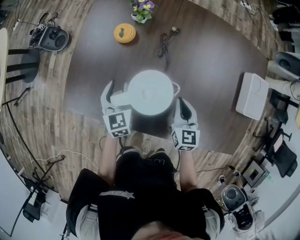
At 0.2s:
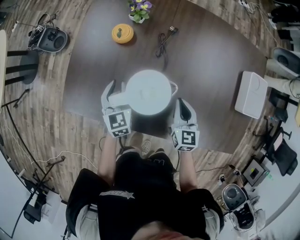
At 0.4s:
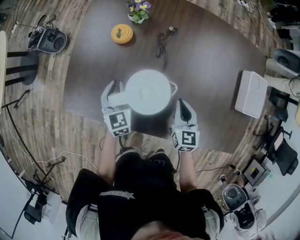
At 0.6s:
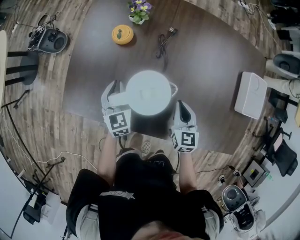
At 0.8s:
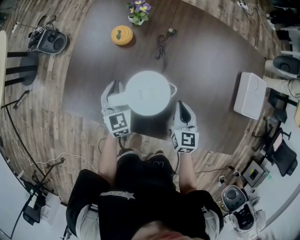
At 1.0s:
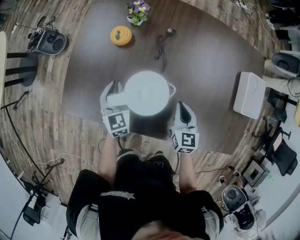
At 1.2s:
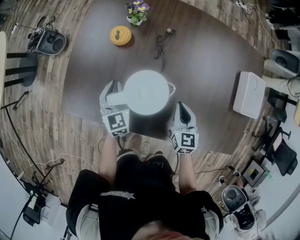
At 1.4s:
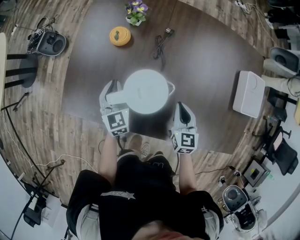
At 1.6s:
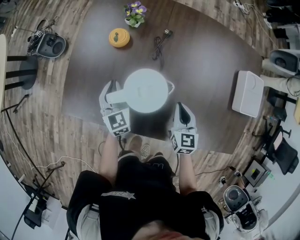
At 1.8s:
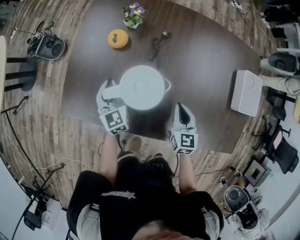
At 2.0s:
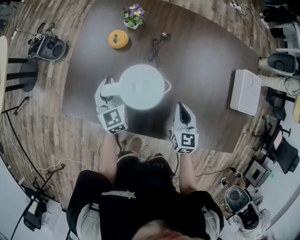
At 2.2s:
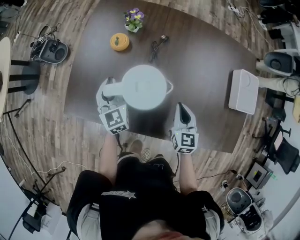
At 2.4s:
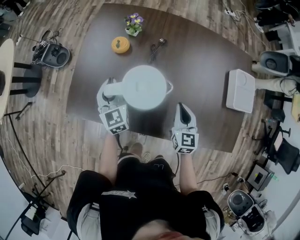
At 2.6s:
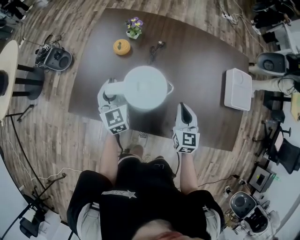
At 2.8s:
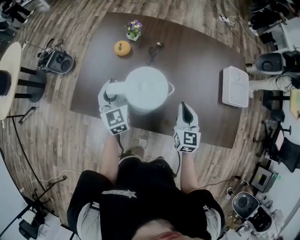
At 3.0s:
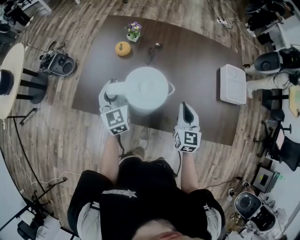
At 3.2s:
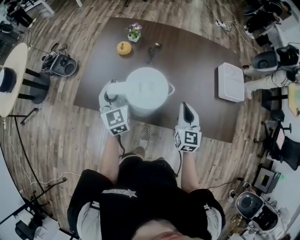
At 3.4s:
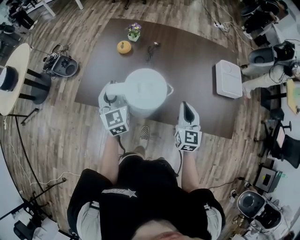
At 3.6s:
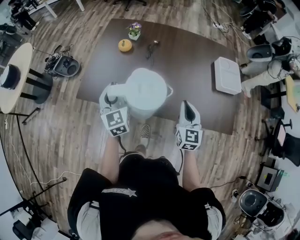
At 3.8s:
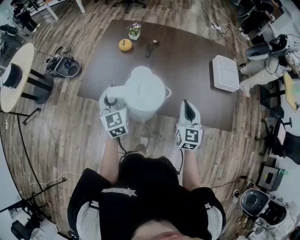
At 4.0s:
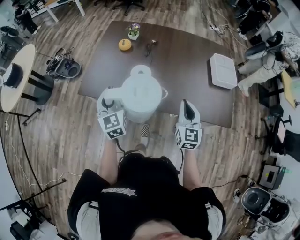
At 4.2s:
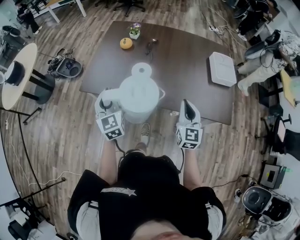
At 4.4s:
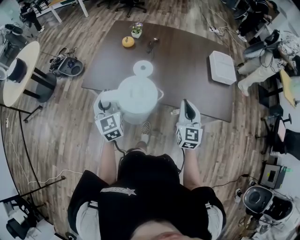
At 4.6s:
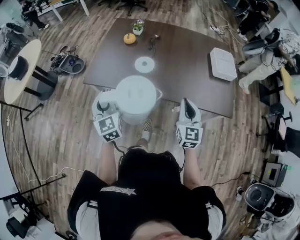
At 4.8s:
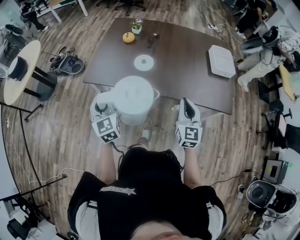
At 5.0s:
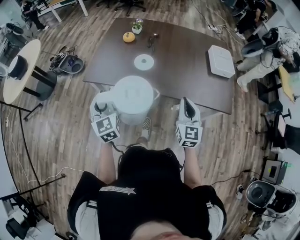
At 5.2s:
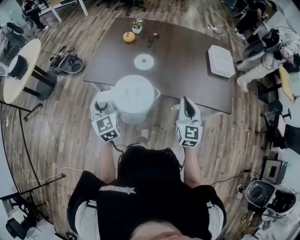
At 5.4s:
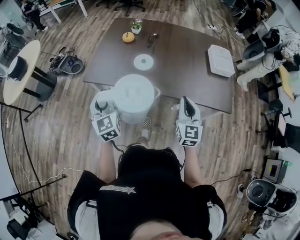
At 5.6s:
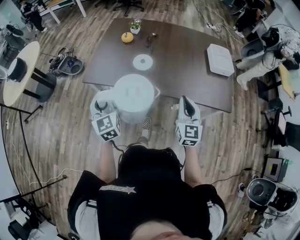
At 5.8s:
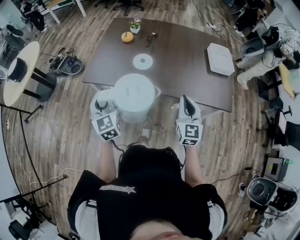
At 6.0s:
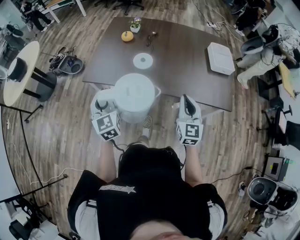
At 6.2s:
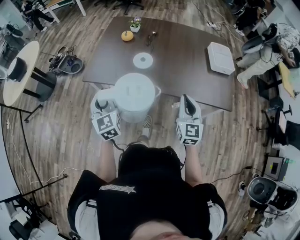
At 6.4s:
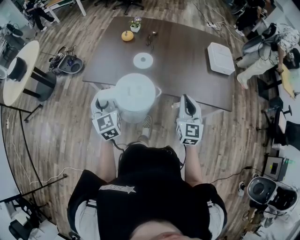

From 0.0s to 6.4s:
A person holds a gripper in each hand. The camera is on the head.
From 0.0s to 1.6s: The left gripper closes up.
From 1.6s to 3.2s: Both grippers move upward and backward, some 20 cm.
From 3.2s to 4.8s: The two grippers go roughly 25 cm backward.
From 4.8s to 6.4s: Both grippers stay about where they are.

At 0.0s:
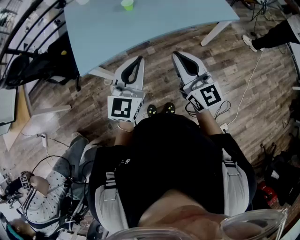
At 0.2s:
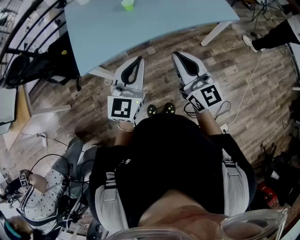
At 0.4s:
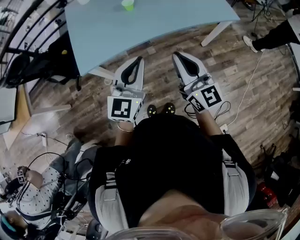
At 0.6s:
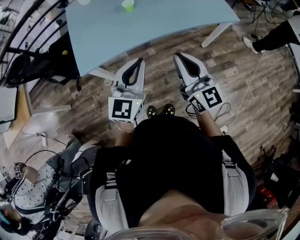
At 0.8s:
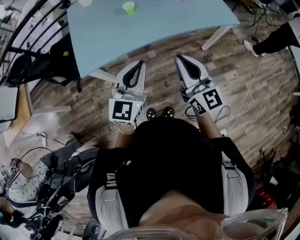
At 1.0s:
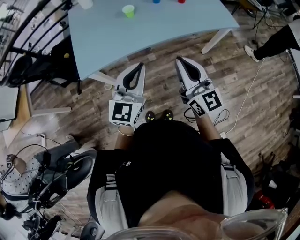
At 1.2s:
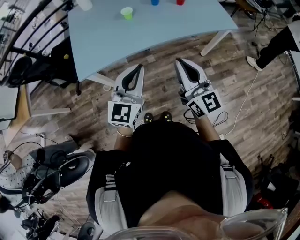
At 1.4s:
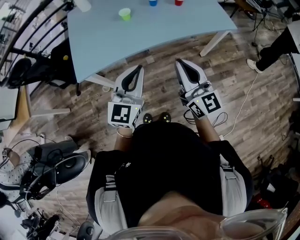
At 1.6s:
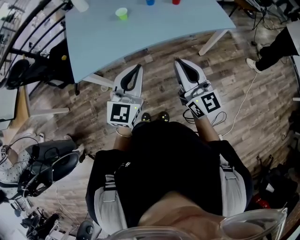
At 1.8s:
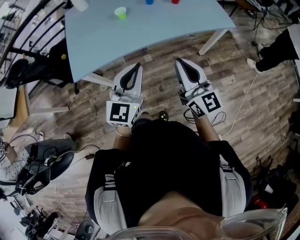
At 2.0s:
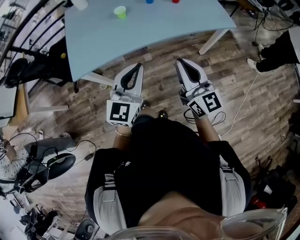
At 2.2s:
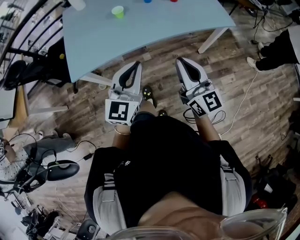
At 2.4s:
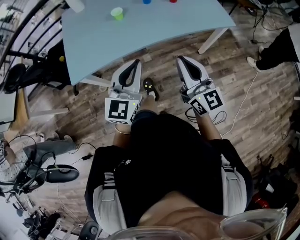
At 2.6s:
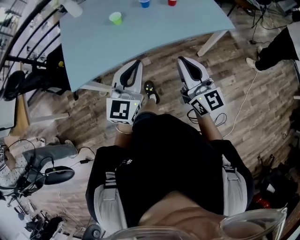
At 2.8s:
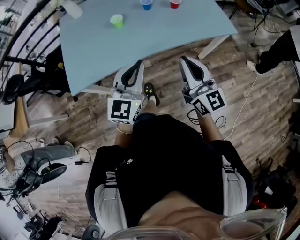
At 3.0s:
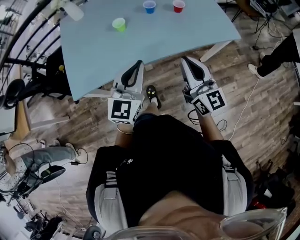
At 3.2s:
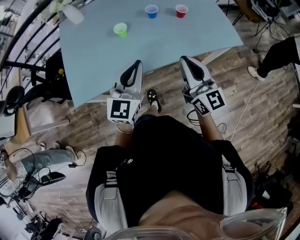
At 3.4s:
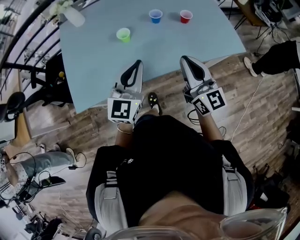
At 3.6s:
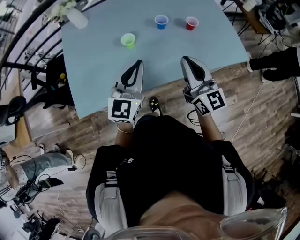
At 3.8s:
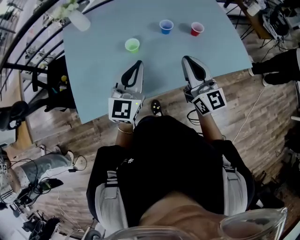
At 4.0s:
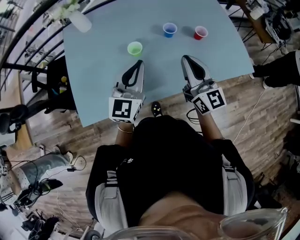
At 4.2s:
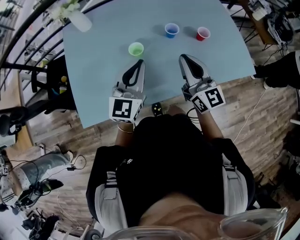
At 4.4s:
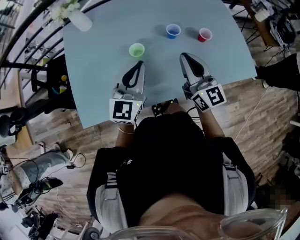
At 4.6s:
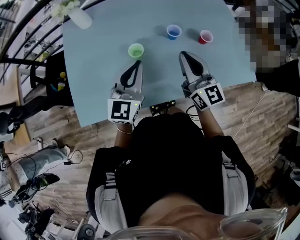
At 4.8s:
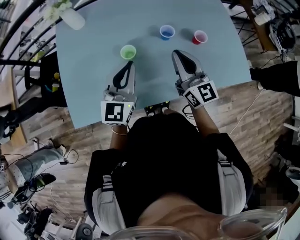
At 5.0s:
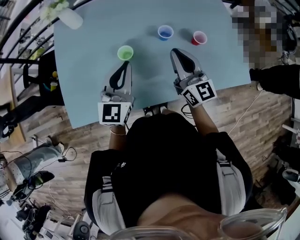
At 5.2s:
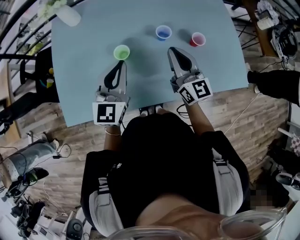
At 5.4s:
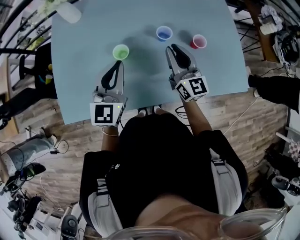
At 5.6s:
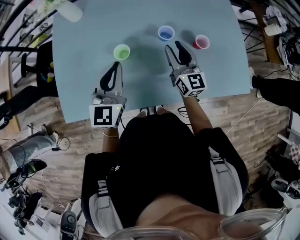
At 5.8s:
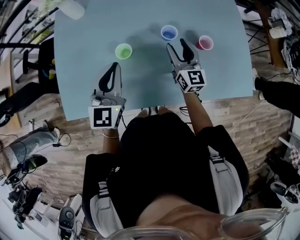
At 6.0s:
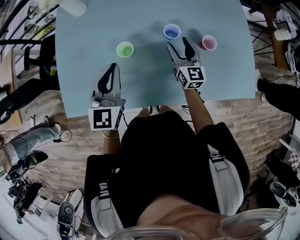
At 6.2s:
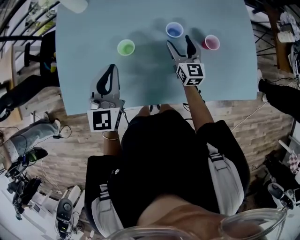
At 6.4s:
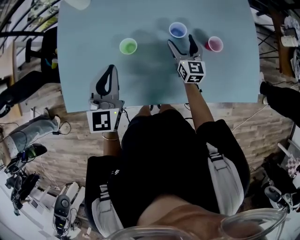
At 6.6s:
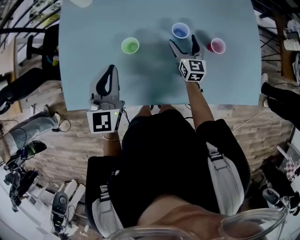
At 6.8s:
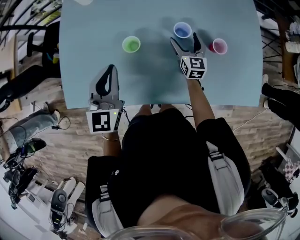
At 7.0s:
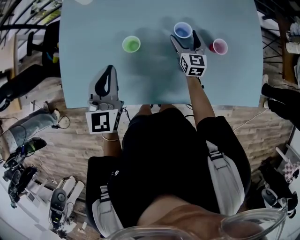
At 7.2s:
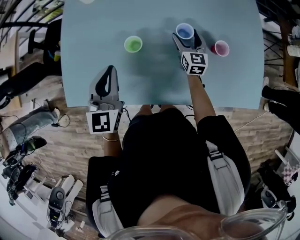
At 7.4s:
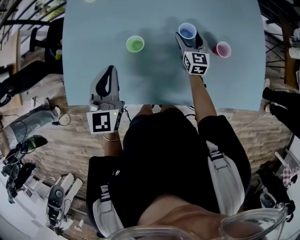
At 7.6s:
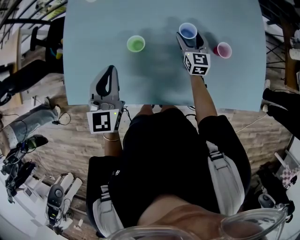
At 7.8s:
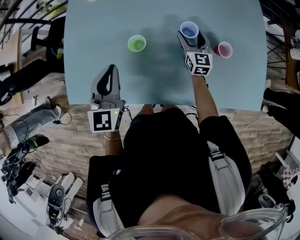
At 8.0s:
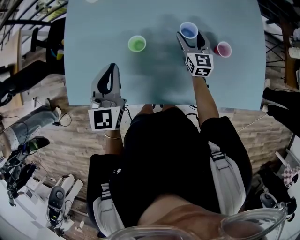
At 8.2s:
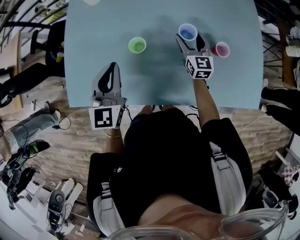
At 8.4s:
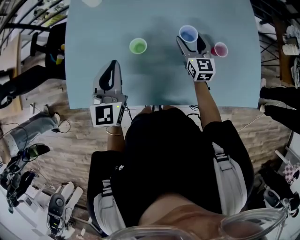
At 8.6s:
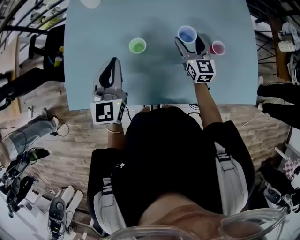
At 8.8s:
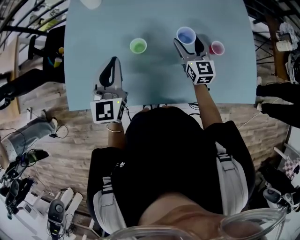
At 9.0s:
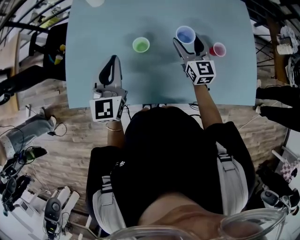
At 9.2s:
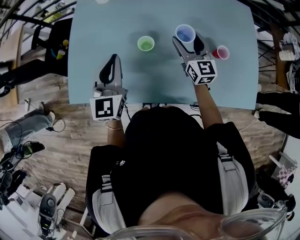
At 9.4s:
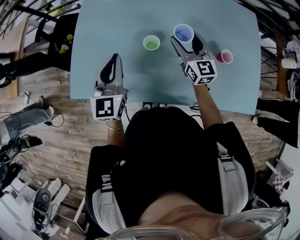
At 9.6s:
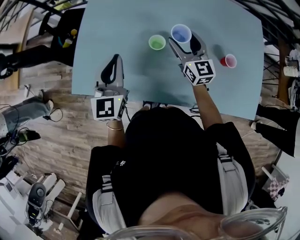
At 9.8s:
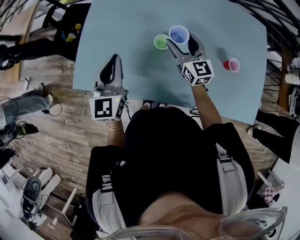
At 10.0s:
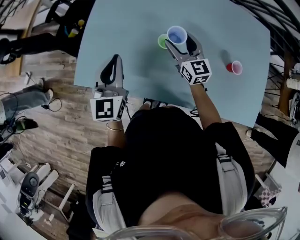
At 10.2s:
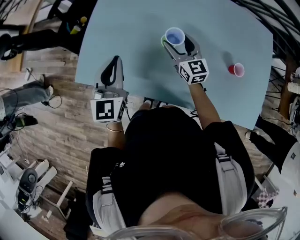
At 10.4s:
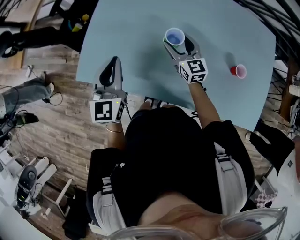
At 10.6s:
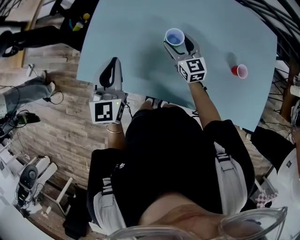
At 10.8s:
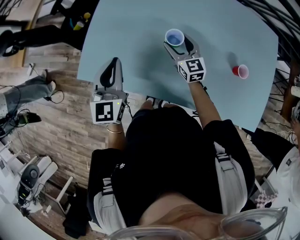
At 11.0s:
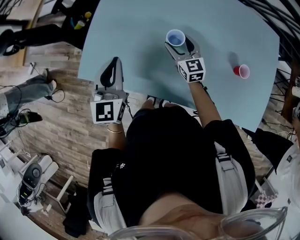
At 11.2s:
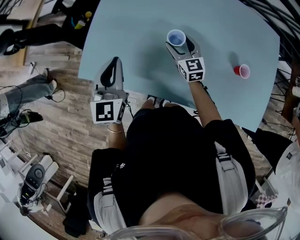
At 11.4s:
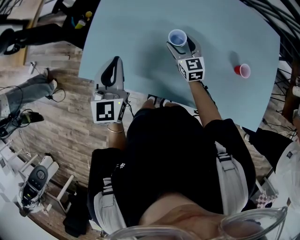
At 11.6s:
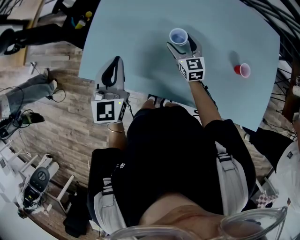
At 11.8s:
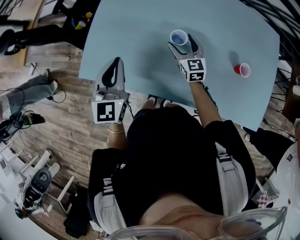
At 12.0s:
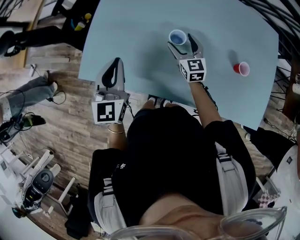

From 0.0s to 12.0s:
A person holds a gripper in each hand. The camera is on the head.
From 0.0s to 1.6s: Both grippers travel together to the right, approximately 10 cm.
From 1.6s to 3.0s: The two grippers go approximately 15 cm forward.
From 3.0s to 4.4s: The grippers both shift forward by about 25 cm.
From 4.4s to 6.0s: The right gripper goes some 25 cm forward and downward, and opens, while the left gripper shifts some 5 cm forward.
From 6.0s to 7.6s: The left gripper shifts approximately 5 cm to the left. The right gripper travels forward and downward by some 10 cm.
From 7.6s to 9.0s: The right gripper heads upward, covering approximately 10 cm.
From 9.0s to 10.4s: The left gripper goes roughly 10 cm to the left. Meanwhile the right gripper travels to the left by roughly 15 cm, and changes its angle by about 20 degrees.
From 10.4s to 12.0s: The grippers make only small movements.

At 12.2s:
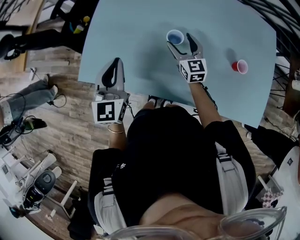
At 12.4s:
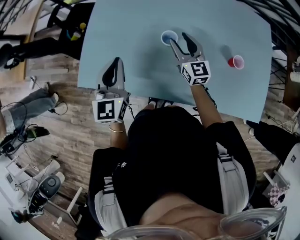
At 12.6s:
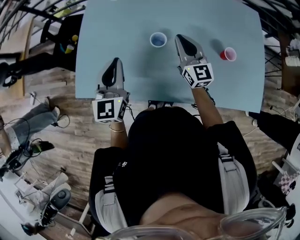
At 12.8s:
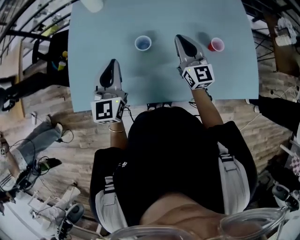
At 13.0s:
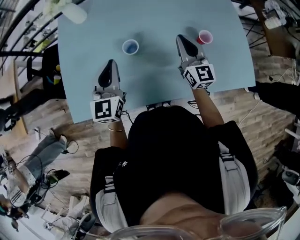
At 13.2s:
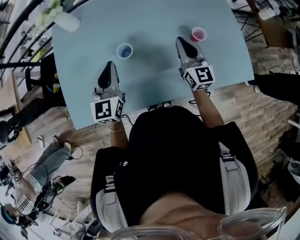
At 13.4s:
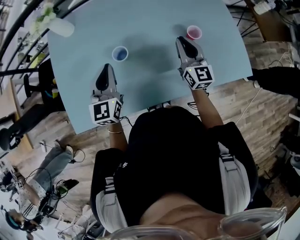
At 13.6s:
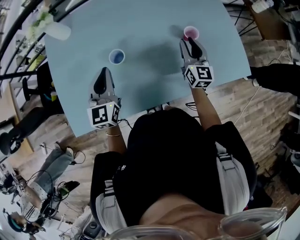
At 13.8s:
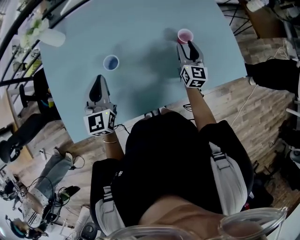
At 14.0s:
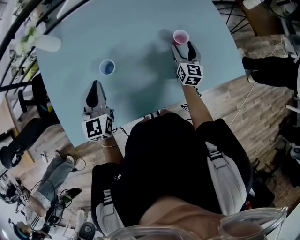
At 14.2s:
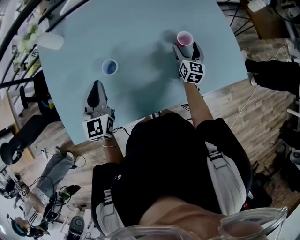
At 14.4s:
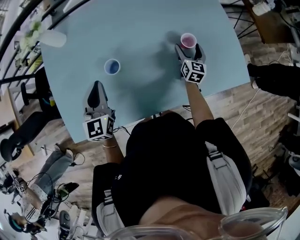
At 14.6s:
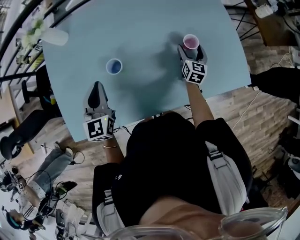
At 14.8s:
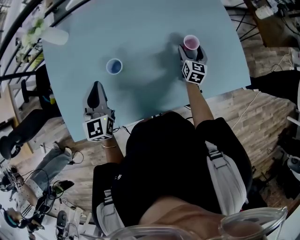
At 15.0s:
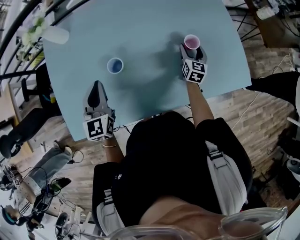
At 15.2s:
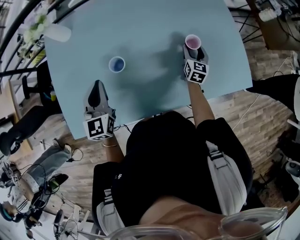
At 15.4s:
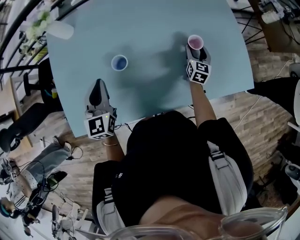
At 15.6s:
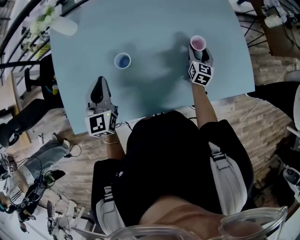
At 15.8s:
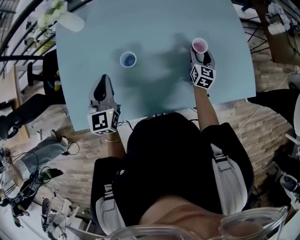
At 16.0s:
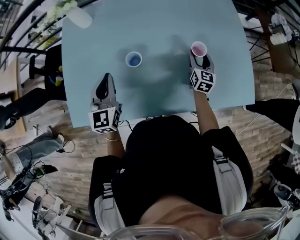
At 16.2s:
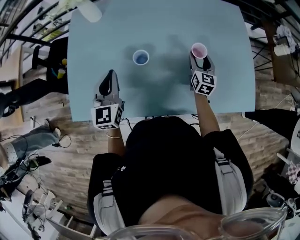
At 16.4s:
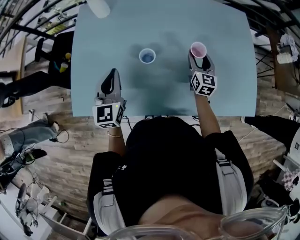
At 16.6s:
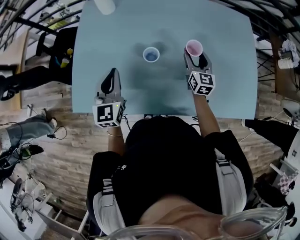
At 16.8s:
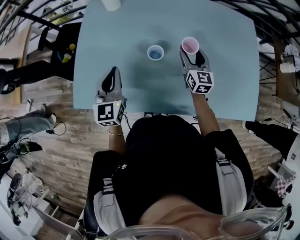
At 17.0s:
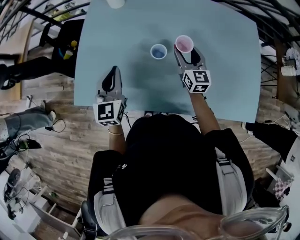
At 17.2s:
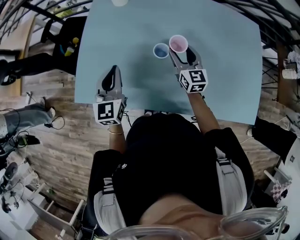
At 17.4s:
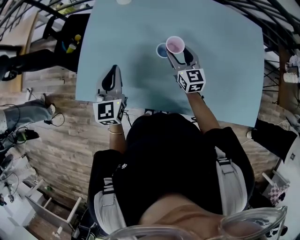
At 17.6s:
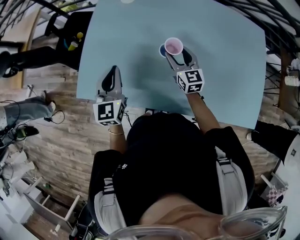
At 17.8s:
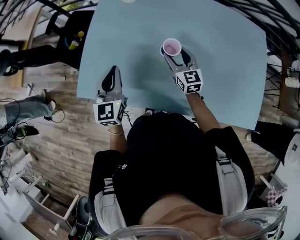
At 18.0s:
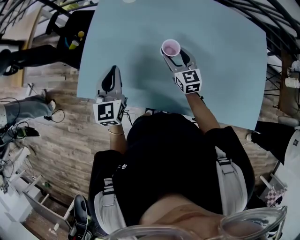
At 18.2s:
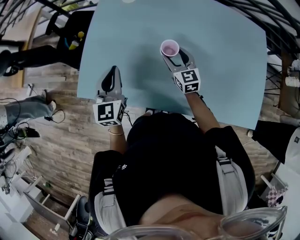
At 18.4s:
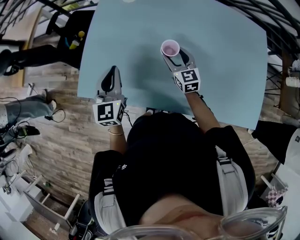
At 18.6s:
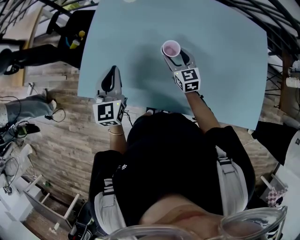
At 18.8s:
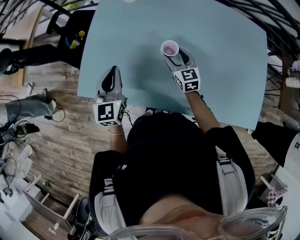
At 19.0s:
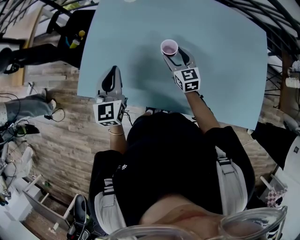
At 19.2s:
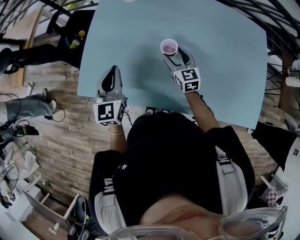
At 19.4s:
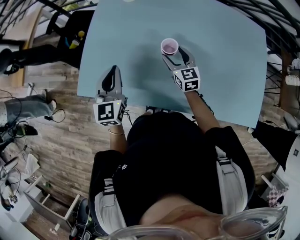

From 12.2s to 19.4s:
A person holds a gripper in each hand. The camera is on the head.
From 12.2s to 13.6s: The left gripper moves about 20 cm, and turns by some 20 degrees. The right gripper changes place by about 30 cm, swivels approximately 40 degrees, and closes its fingers.
From 13.6s to 15.0s: The right gripper is displaced downward, forward and to the right by approximately 15 cm, swivels roughly 20 degrees, and opens up.
From 15.0s to 16.6s: The left gripper goes about 5 cm to the left. Meanwhile the right gripper moves to the left and upward, approximately 20 cm, and turns by roughly 30 degrees.
From 16.6s to 18.0s: The left gripper is displaced to the left by some 10 cm. Meanwhile the right gripper is displaced to the left by approximately 20 cm, and changes its angle by roughly 30 degrees.
From 18.0s to 19.4s: The grippers make only small movements.
